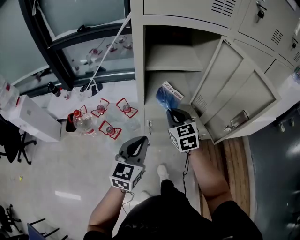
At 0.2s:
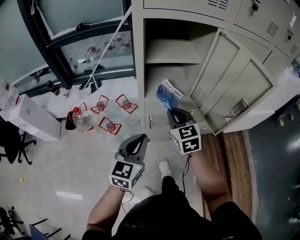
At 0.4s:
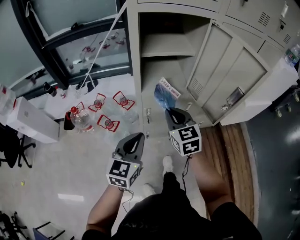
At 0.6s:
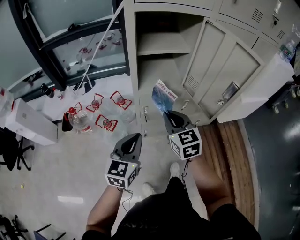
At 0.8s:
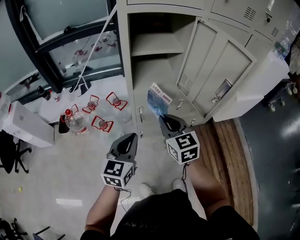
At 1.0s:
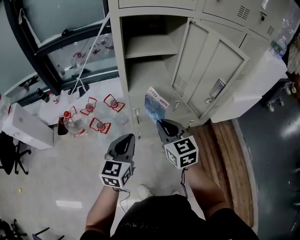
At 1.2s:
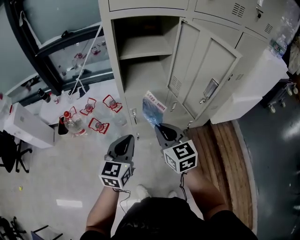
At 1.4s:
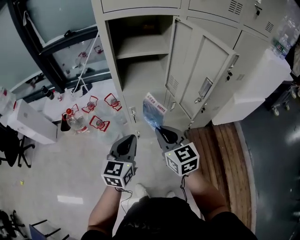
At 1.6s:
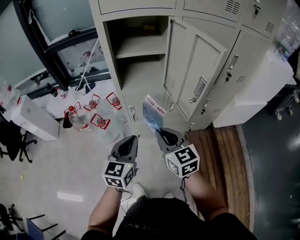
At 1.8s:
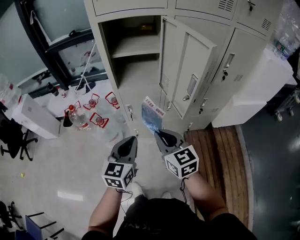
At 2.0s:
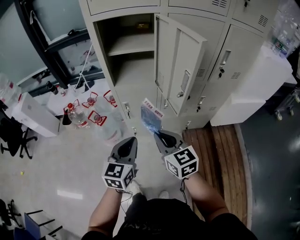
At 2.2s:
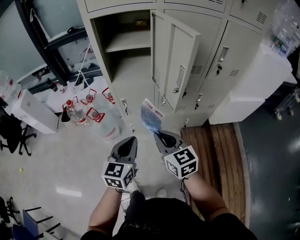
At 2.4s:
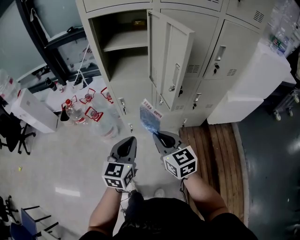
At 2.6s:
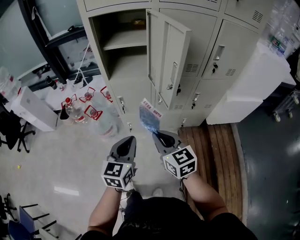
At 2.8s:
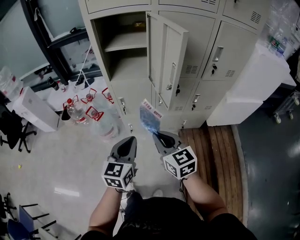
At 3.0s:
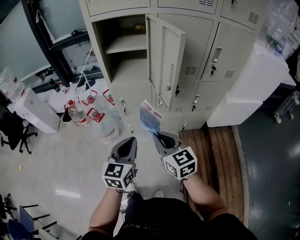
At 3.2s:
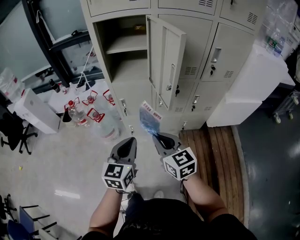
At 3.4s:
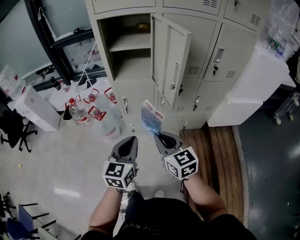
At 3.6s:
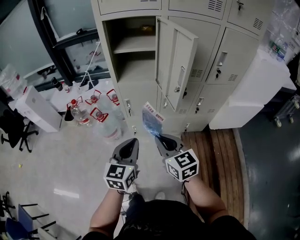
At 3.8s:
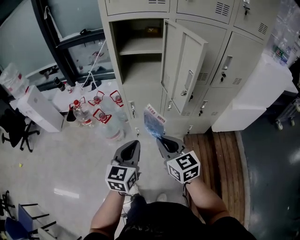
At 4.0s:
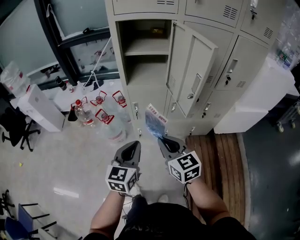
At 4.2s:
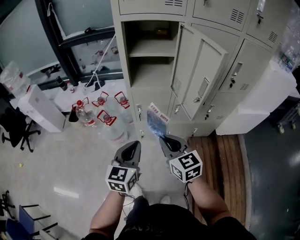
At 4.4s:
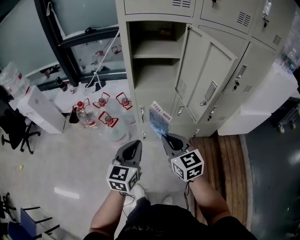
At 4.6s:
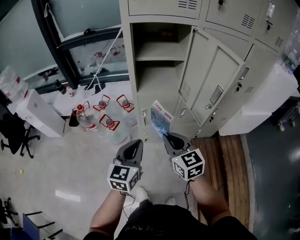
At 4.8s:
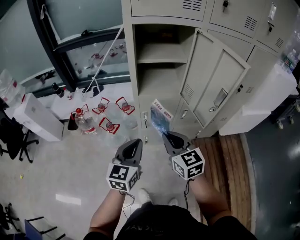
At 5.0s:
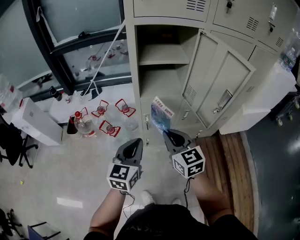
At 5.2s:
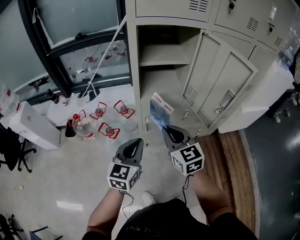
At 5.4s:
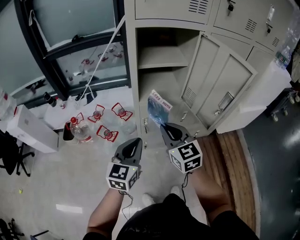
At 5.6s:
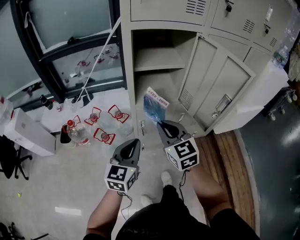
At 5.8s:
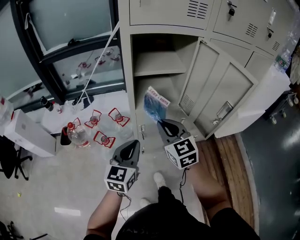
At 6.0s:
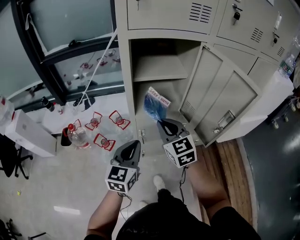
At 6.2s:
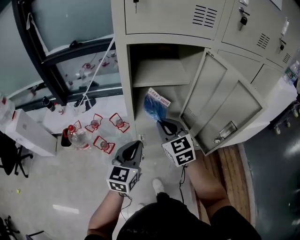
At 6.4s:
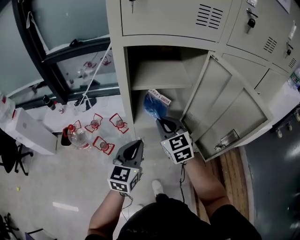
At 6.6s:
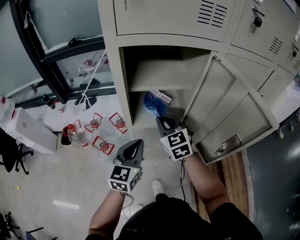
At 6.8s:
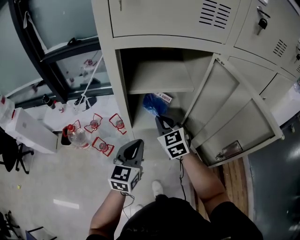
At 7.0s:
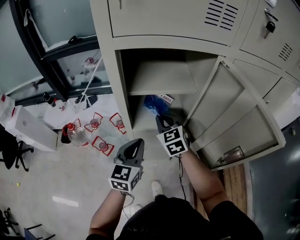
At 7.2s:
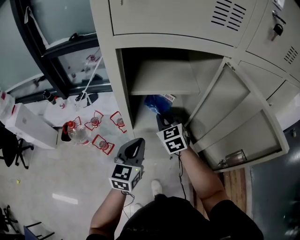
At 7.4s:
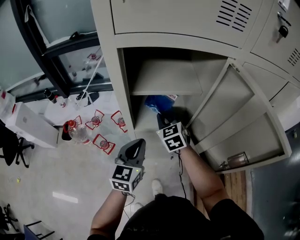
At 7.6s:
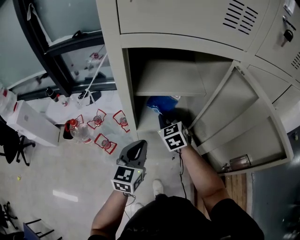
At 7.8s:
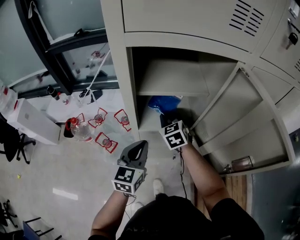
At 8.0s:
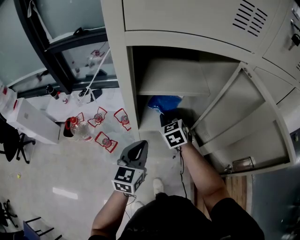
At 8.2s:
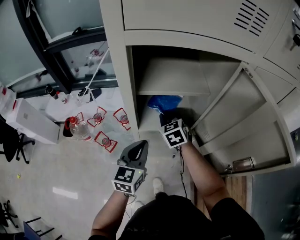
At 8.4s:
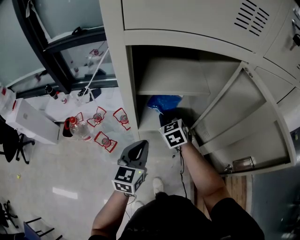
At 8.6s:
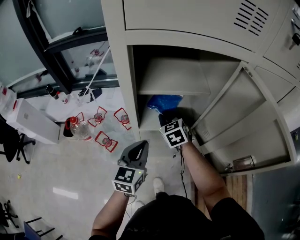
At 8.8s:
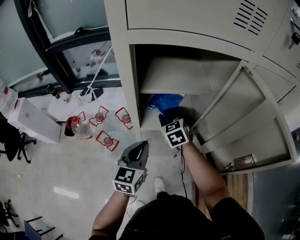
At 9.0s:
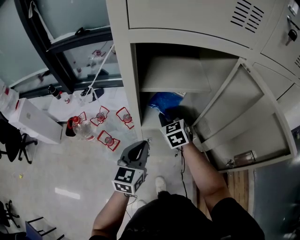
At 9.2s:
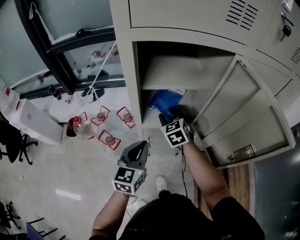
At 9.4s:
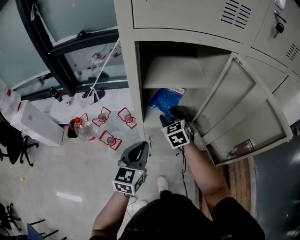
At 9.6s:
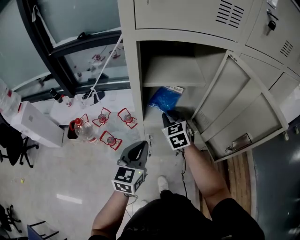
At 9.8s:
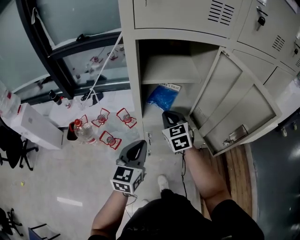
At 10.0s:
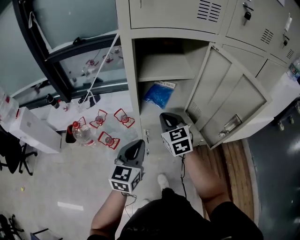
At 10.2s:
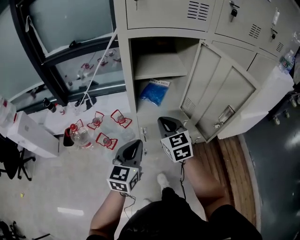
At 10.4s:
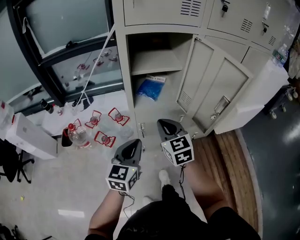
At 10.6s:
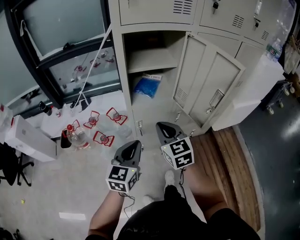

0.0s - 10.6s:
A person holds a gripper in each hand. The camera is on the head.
0.0s - 1.6s: The right gripper heads backward and to the right, covering roughly 25 cm, while the left gripper moves backward and to the right, about 15 cm.
1.6s - 3.0s: The grippers both shift backward and to the right by approximately 15 cm.
3.0s - 4.6s: Both grippers move to the left and forward, about 15 cm.
4.6s - 6.0s: The grippers both shift forward by some 15 cm.
6.0s - 7.6s: The right gripper moves forward and downward, roughly 20 cm. Meanwhile the left gripper moves forward, roughly 10 cm.
7.6s - 9.0s: The right gripper opens.
9.0s - 10.6s: The right gripper goes about 25 cm backward, and closes its fingers. Meanwhile the left gripper travels backward by roughly 15 cm.

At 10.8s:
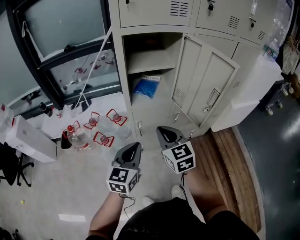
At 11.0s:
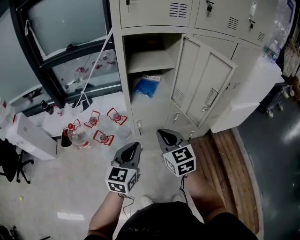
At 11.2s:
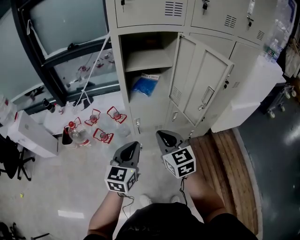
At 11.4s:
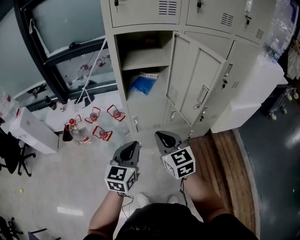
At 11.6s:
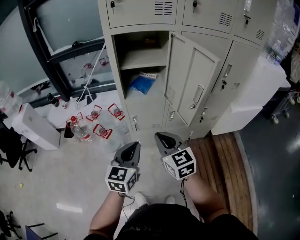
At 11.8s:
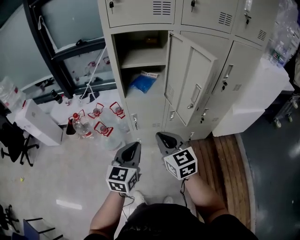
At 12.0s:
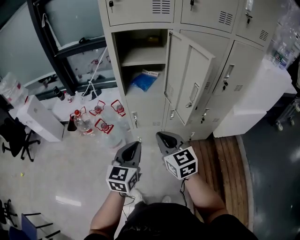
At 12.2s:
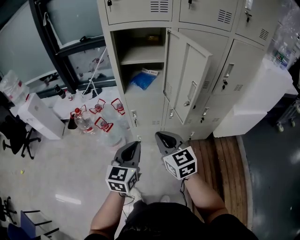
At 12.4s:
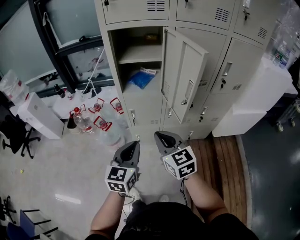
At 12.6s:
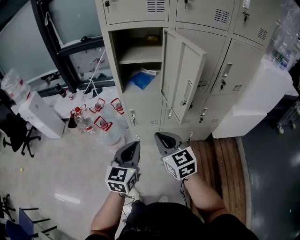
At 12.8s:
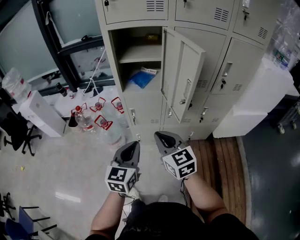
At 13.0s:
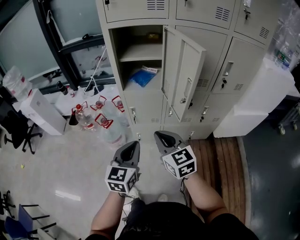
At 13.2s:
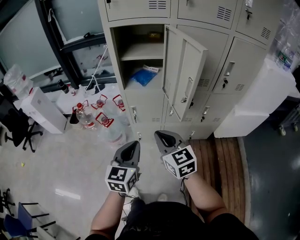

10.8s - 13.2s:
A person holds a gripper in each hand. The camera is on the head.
10.8s - 12.0s: The two grippers go approximately 15 cm to the right and backward.
12.0s - 13.2s: The grippers make only small movements.

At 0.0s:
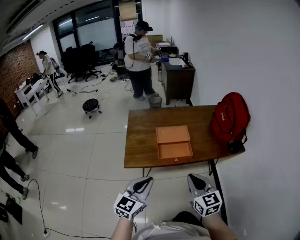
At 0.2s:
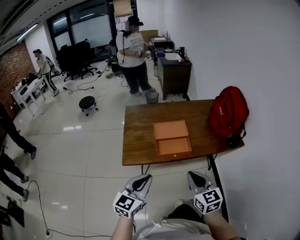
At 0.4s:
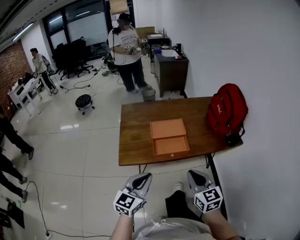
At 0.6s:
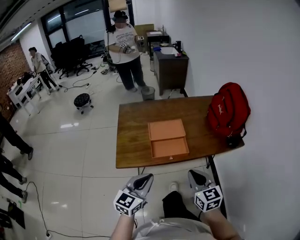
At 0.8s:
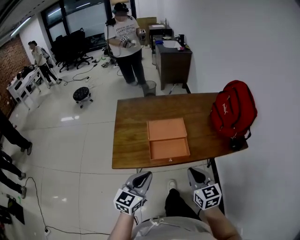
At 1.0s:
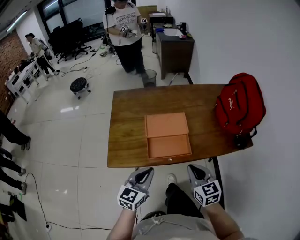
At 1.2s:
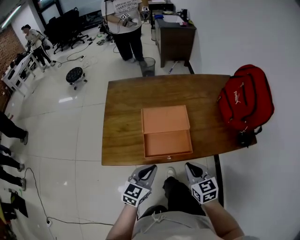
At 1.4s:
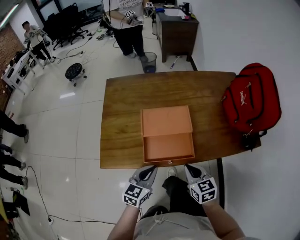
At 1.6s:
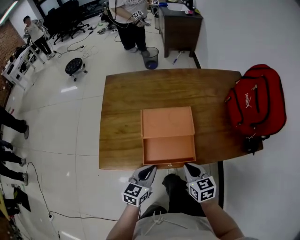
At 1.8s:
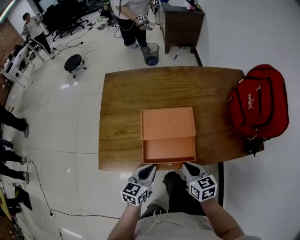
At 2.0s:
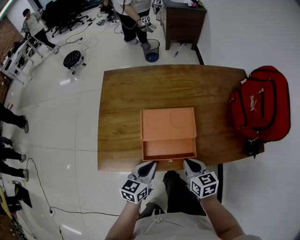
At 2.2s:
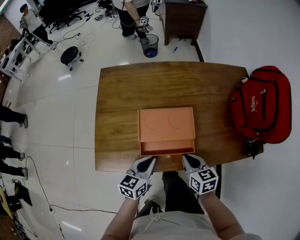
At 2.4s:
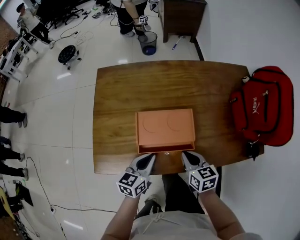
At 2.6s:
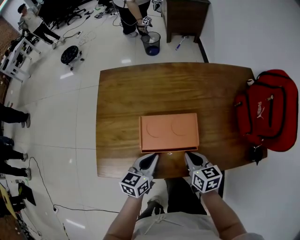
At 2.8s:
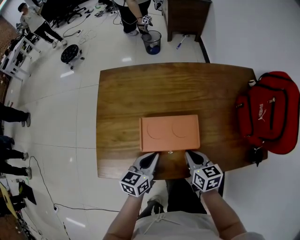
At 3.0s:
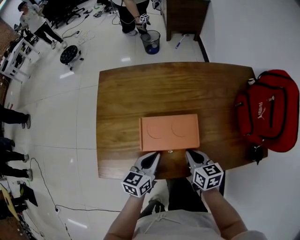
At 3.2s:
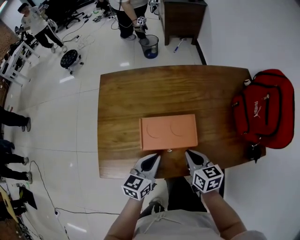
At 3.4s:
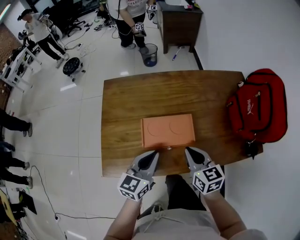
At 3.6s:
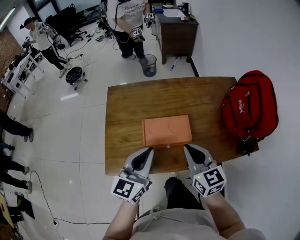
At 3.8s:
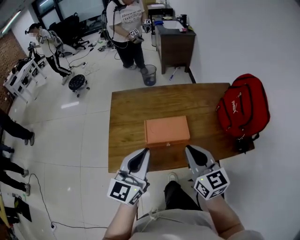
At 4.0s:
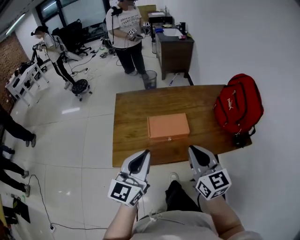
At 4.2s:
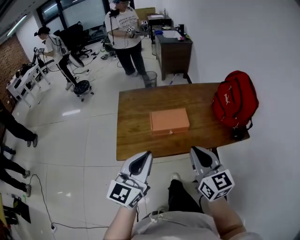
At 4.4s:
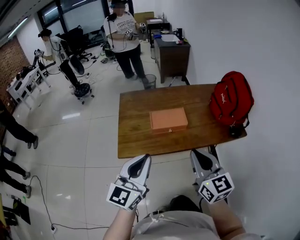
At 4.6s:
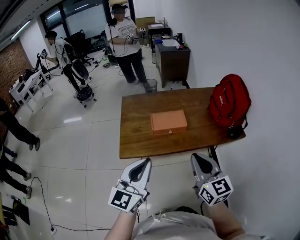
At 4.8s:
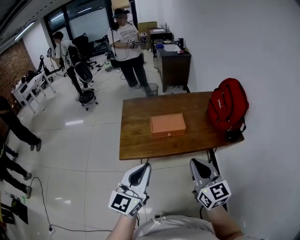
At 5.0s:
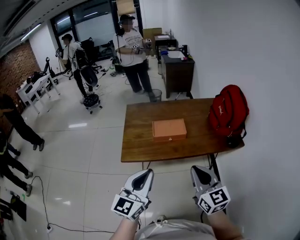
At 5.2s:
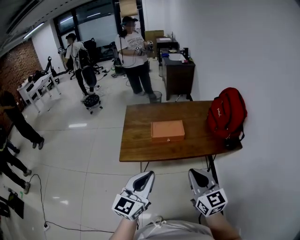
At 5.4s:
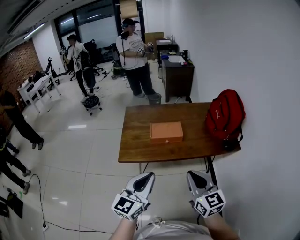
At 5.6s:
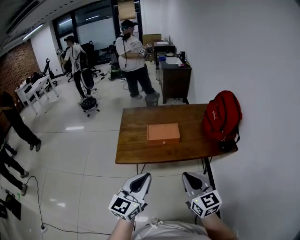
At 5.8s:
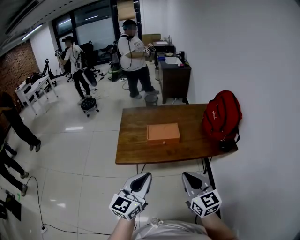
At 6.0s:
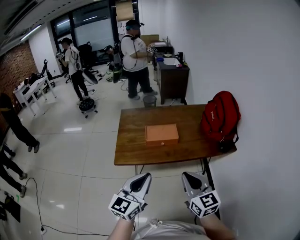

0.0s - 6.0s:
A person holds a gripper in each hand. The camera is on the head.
0.0s - 1.6s: Both grippers move downward and forward, approximately 30 cm. The left gripper rotates about 30 degrees; the right gripper changes its angle by roughly 30 degrees.
1.6s - 3.0s: The grippers both shift forward by roughly 10 cm.
3.0s - 4.4s: Both grippers move upward and backward, roughly 40 cm. The left gripper rotates roughly 40 degrees. The right gripper tips its fingers upward by approximately 30 degrees.
4.4s - 6.0s: The right gripper travels backward by about 10 cm. The left gripper moves backward and to the right, some 10 cm.

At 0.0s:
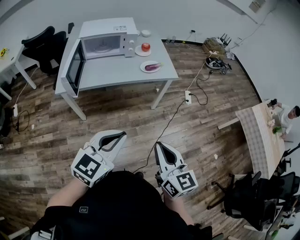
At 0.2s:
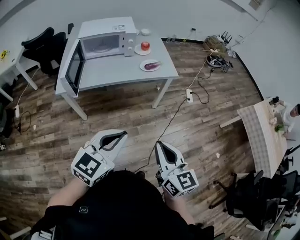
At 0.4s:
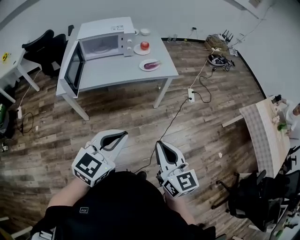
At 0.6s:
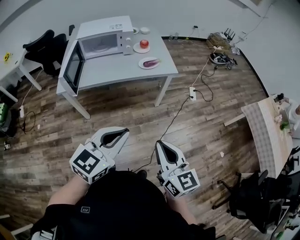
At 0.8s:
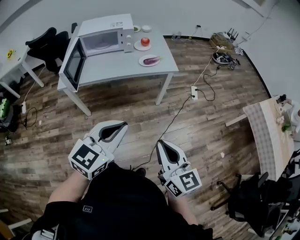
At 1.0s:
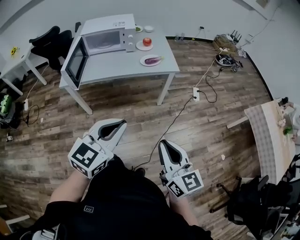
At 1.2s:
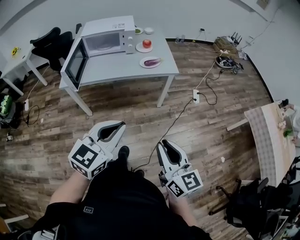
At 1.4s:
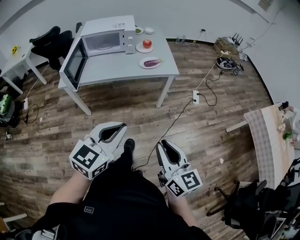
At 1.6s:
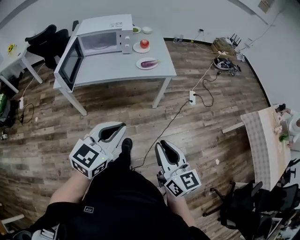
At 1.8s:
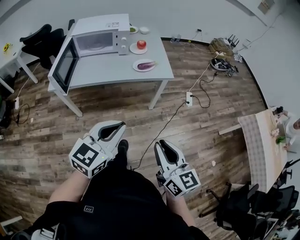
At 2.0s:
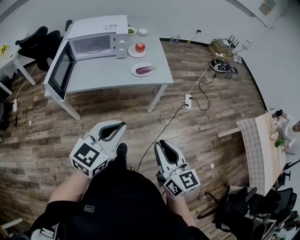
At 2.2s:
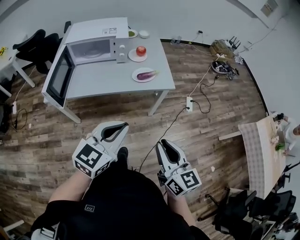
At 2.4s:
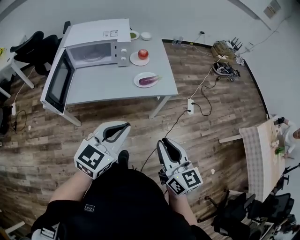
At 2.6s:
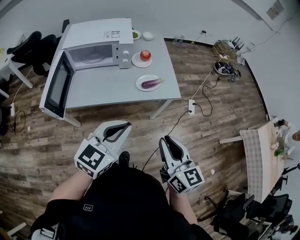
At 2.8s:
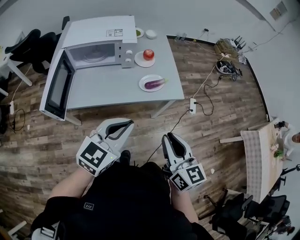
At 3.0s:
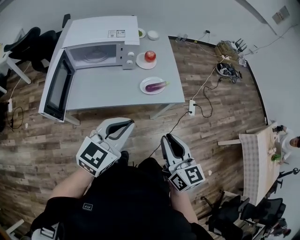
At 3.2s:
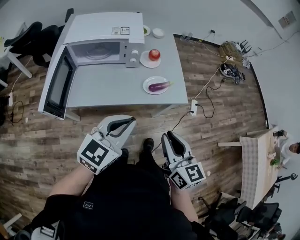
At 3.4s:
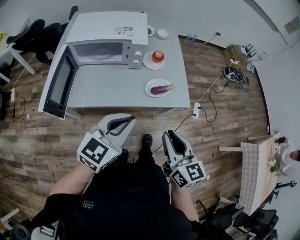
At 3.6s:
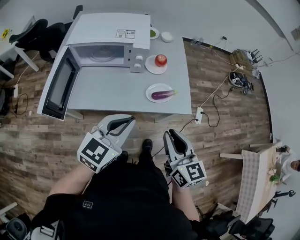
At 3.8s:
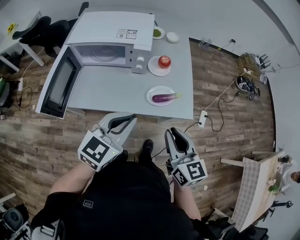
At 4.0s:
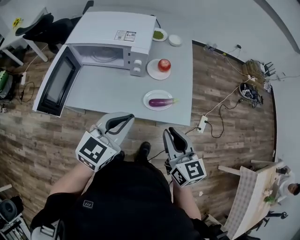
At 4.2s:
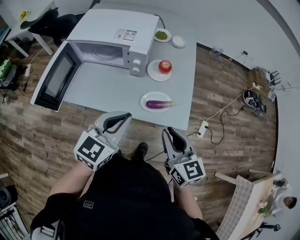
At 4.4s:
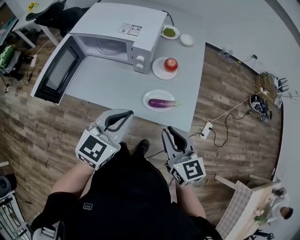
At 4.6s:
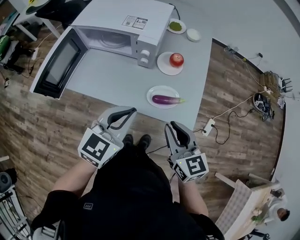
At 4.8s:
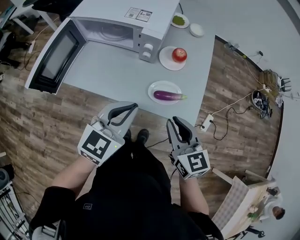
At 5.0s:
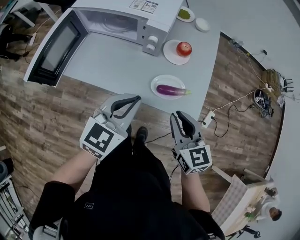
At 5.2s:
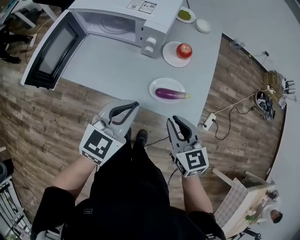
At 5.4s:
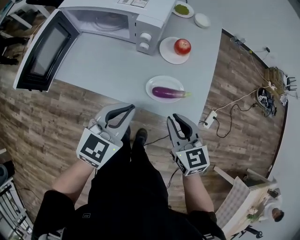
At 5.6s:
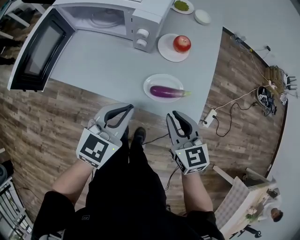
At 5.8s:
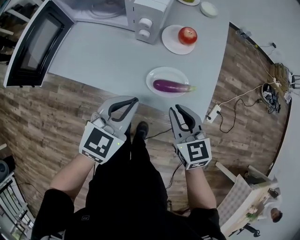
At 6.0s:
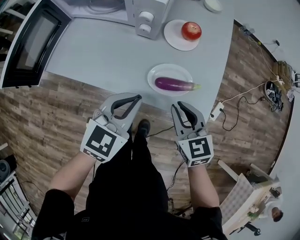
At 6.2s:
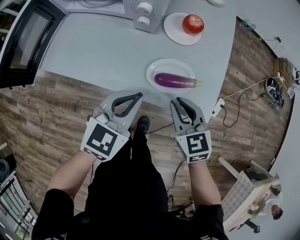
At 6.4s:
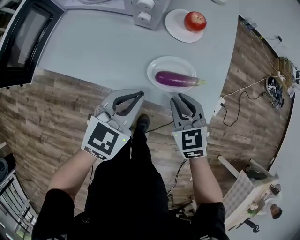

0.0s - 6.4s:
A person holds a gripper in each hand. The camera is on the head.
0.0s - 1.6s: Both grippers travel together to the right, some 10 cm.
1.6s - 3.2s: The two grippers go some 30 cm forward.
3.2s - 4.8s: The left gripper moves approximately 20 cm, and changes its angle by about 30 degrees; the right gripper moves about 20 cm, and changes its angle by roughly 30 degrees.
4.8s - 6.4s: Both grippers travel together downward, some 20 cm. The right gripper swivels approximately 30 degrees.
